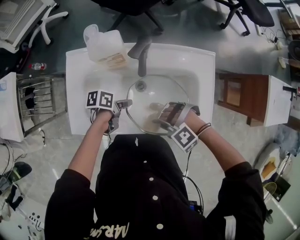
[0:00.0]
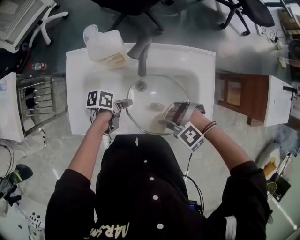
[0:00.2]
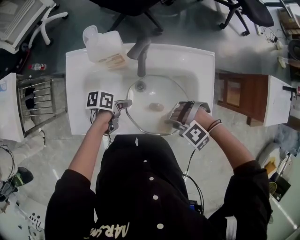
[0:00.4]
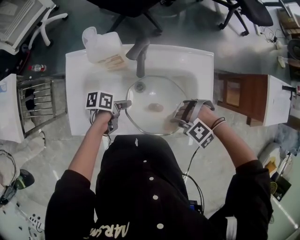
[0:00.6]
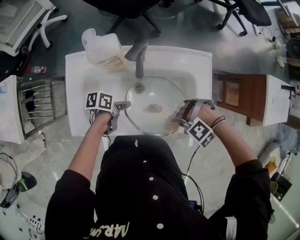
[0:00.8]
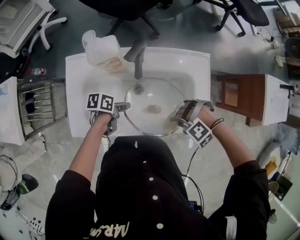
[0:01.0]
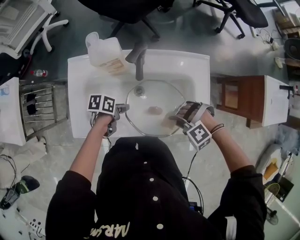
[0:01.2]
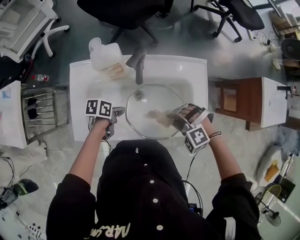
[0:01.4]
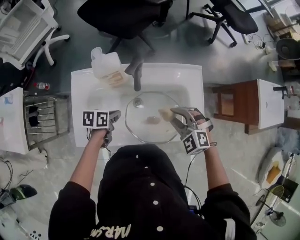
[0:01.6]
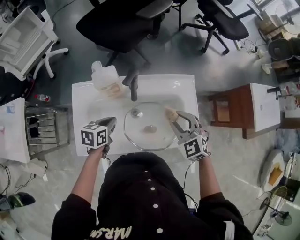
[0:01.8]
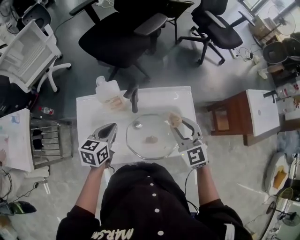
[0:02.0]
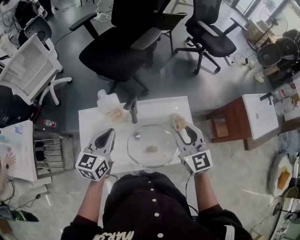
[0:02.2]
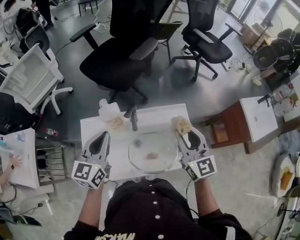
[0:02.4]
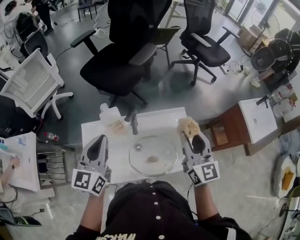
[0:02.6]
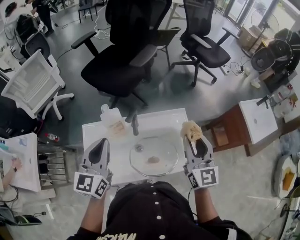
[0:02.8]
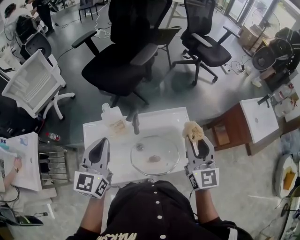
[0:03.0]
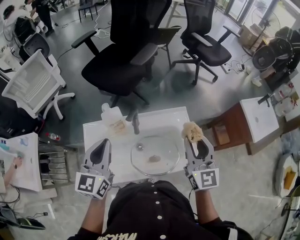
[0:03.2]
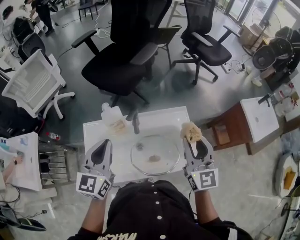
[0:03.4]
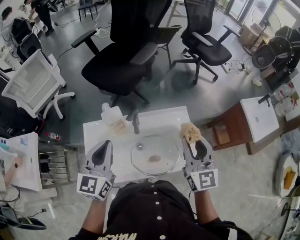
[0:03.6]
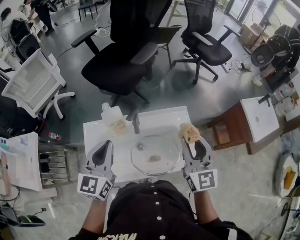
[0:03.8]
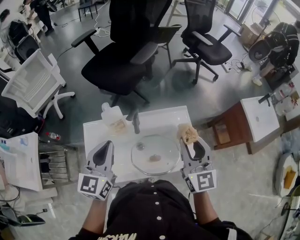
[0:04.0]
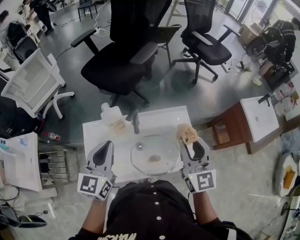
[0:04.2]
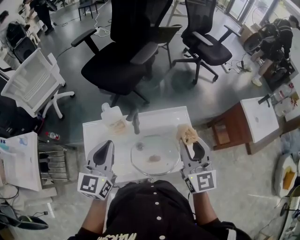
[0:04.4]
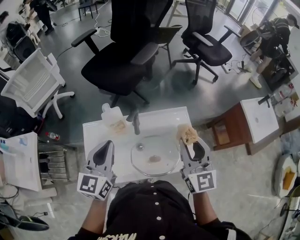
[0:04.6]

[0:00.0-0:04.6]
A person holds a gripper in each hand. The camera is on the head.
0.0 to 1.6 s: The left gripper ends up about 5 cm from where it was, and changes its angle by approximately 20 degrees. The right gripper ends up approximately 15 cm from where it was, and turns by some 50 degrees.
1.6 to 3.0 s: The grippers both shift upward by roughly 30 cm. The right gripper angles its fingers upward, by roughly 50 degrees. Meanwhile the left gripper angles its fingers upward, by about 40 degrees.
3.0 to 4.6 s: There are only small adjustments of the grippers.

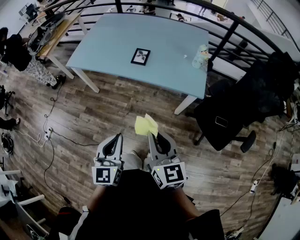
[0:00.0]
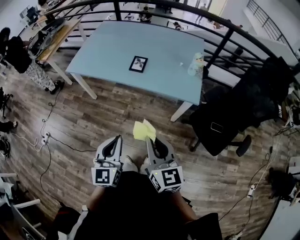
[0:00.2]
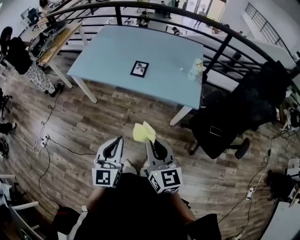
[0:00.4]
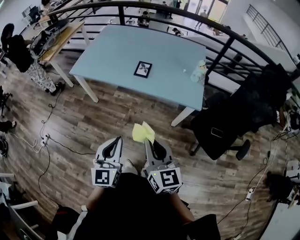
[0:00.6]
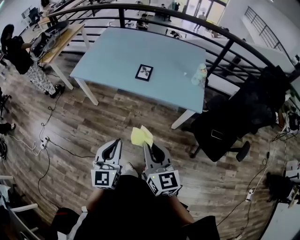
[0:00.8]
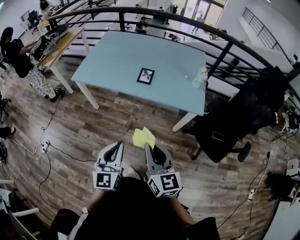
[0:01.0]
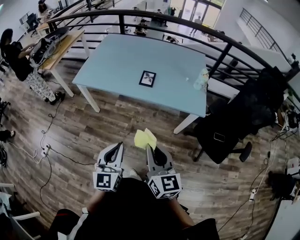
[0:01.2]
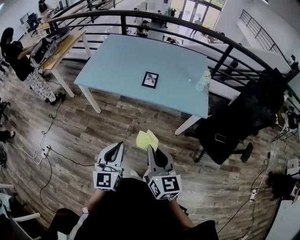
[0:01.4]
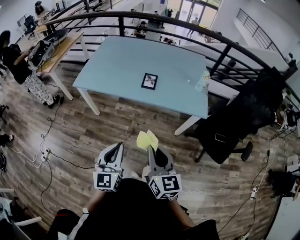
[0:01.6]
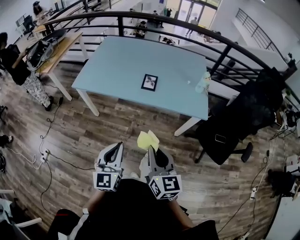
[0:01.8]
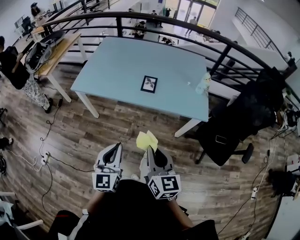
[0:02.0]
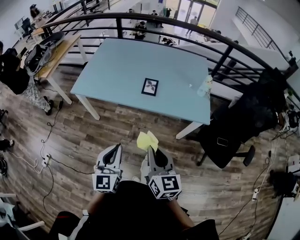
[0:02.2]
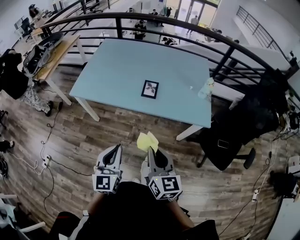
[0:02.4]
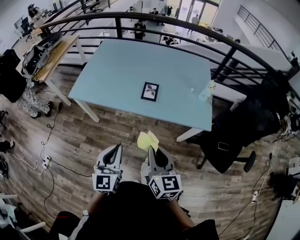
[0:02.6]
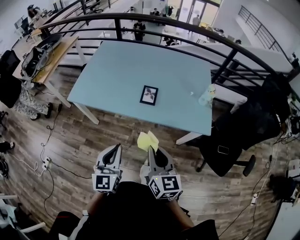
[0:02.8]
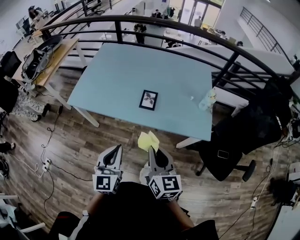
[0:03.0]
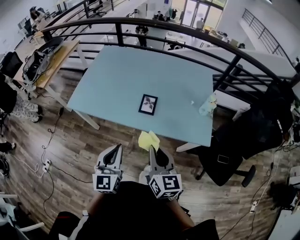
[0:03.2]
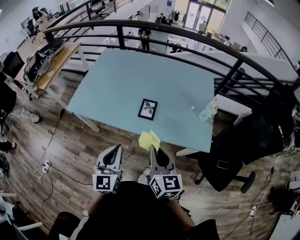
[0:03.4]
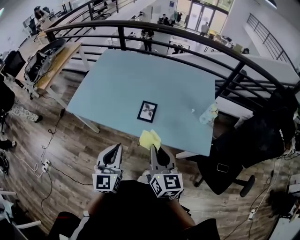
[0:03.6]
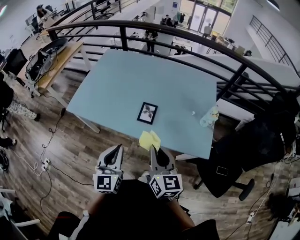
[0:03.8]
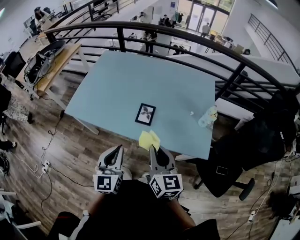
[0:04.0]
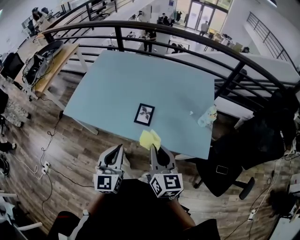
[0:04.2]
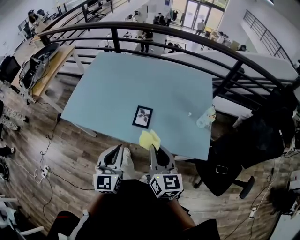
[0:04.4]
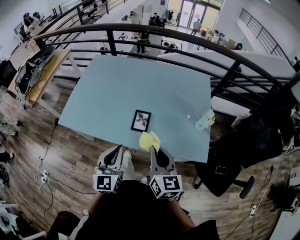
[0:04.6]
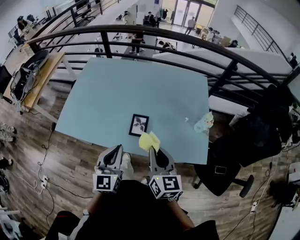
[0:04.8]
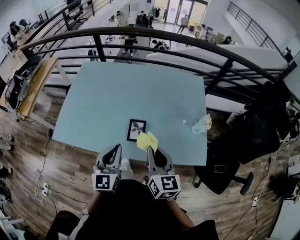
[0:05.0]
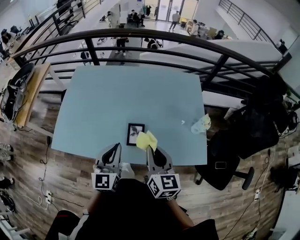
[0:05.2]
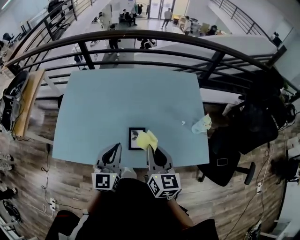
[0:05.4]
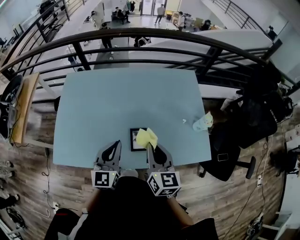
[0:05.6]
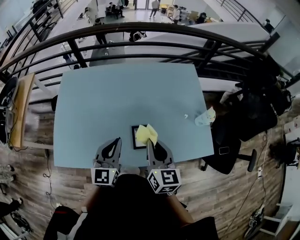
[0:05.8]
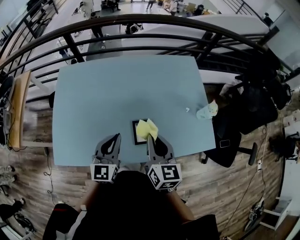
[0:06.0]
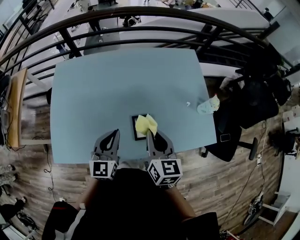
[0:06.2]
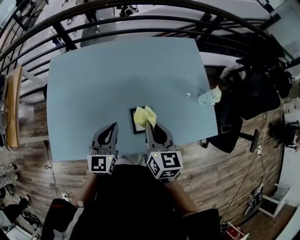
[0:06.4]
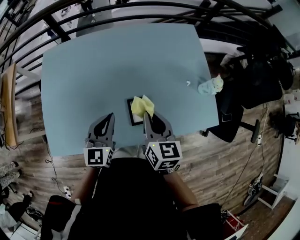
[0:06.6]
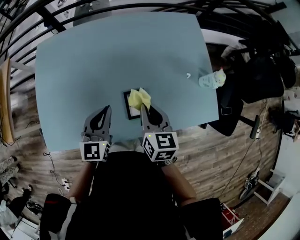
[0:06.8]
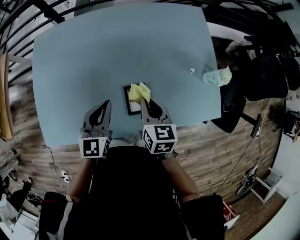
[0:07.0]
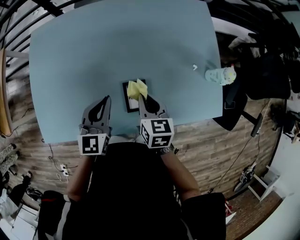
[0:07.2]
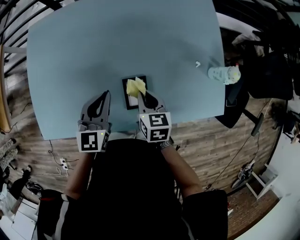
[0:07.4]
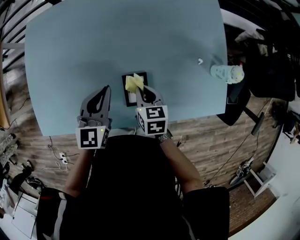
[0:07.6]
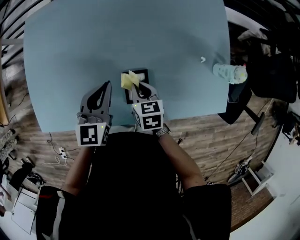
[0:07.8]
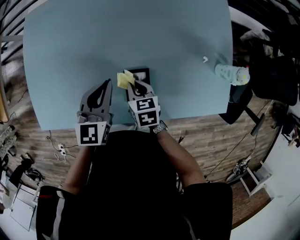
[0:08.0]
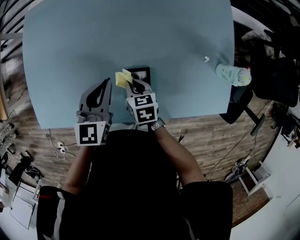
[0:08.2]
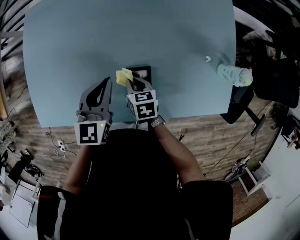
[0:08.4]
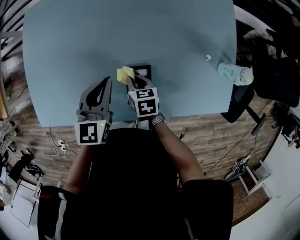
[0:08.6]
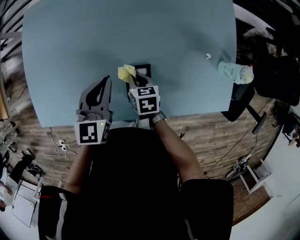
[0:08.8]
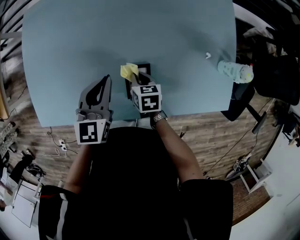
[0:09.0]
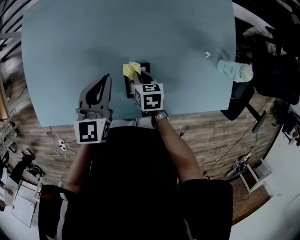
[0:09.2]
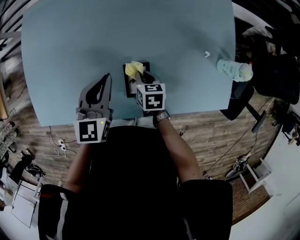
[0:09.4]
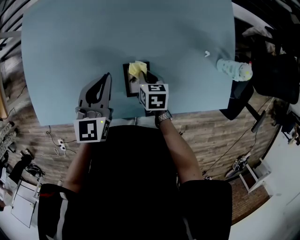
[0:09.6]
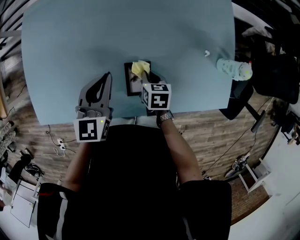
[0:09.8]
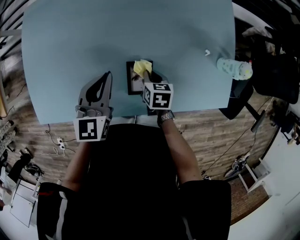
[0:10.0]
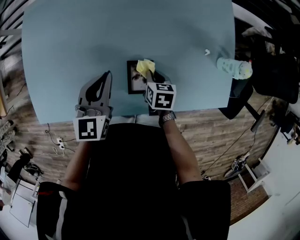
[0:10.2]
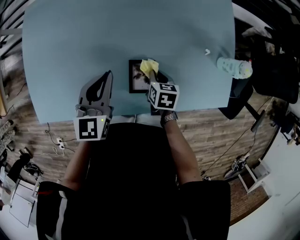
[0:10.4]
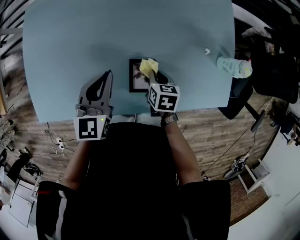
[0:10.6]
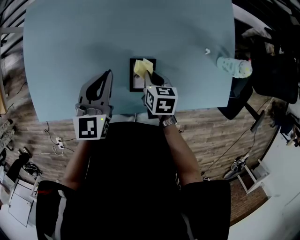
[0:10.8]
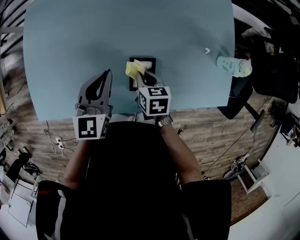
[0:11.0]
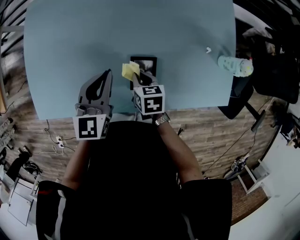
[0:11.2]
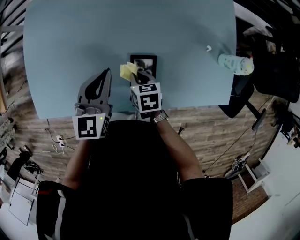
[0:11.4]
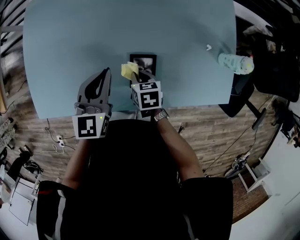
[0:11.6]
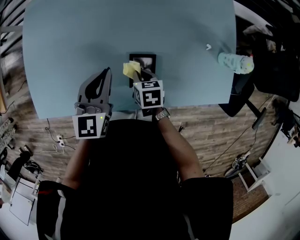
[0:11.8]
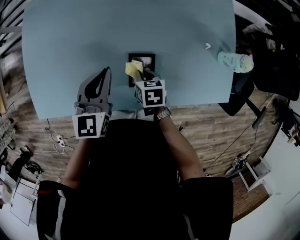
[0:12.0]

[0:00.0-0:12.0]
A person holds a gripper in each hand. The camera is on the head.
0.0 to 1.6 s: Both grippers travel together to the left, approximately 15 cm.
1.6 to 3.0 s: Both grippers move forward, about 20 cm.
3.0 to 4.4 s: Both grippers move forward and to the right, roughly 15 cm.
4.4 to 6.0 s: The two grippers go some 20 cm forward. The left gripper turns by roughly 20 degrees, while the right gripper turns by approximately 20 degrees.
6.0 to 7.6 s: The right gripper heads downward, covering roughly 25 cm, and points its fingers approximately 30 degrees further downward. Meanwhile the left gripper travels downward and forward by approximately 15 cm.
7.6 to 9.0 s: The right gripper is displaced downward by roughly 5 cm.
9.0 to 10.4 s: The right gripper moves to the right, approximately 10 cm.
10.4 to 12.0 s: The right gripper heads to the left, covering about 5 cm.

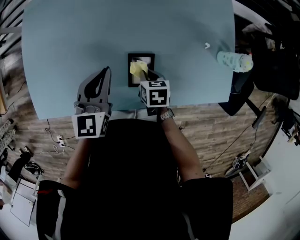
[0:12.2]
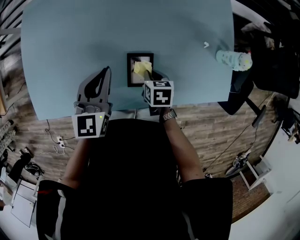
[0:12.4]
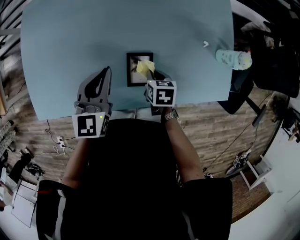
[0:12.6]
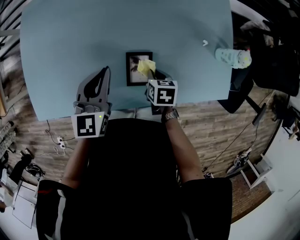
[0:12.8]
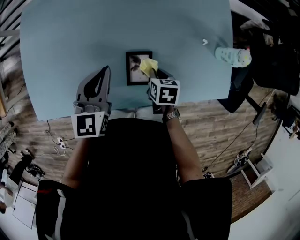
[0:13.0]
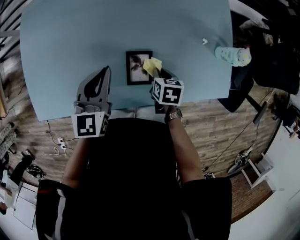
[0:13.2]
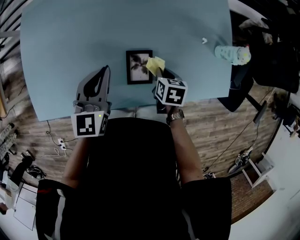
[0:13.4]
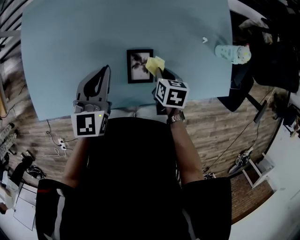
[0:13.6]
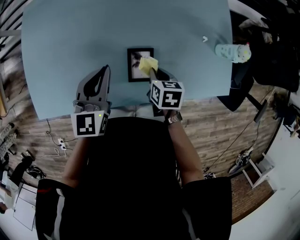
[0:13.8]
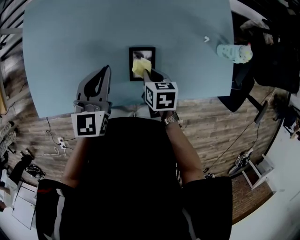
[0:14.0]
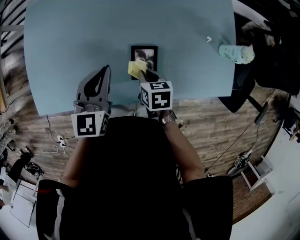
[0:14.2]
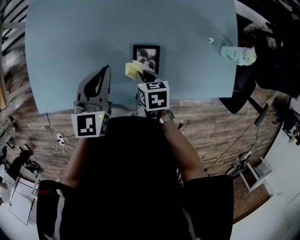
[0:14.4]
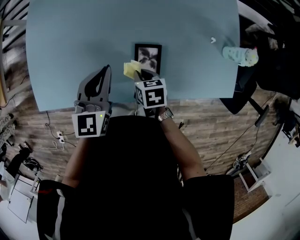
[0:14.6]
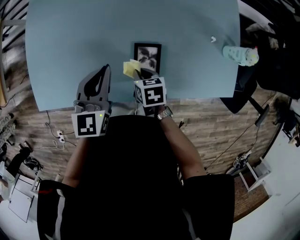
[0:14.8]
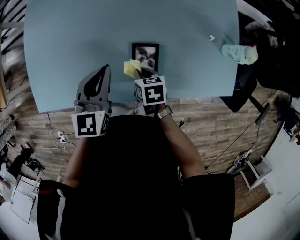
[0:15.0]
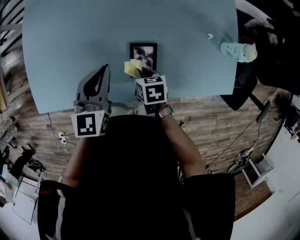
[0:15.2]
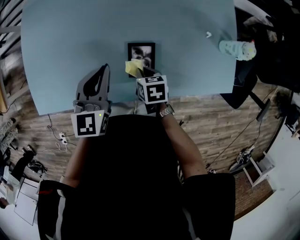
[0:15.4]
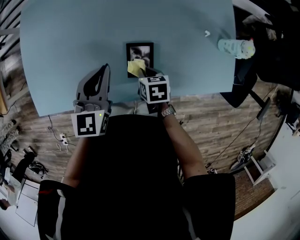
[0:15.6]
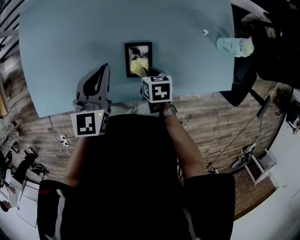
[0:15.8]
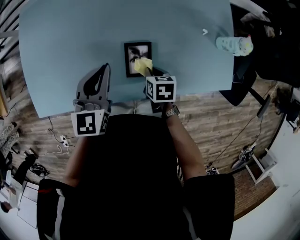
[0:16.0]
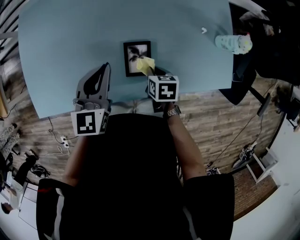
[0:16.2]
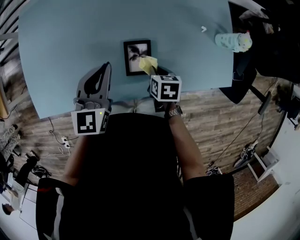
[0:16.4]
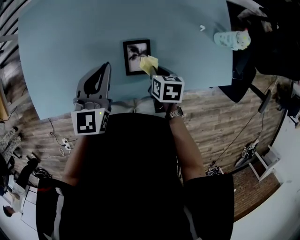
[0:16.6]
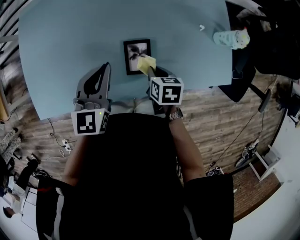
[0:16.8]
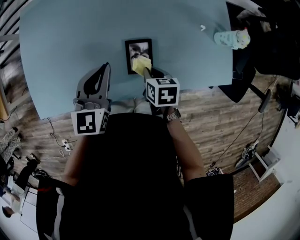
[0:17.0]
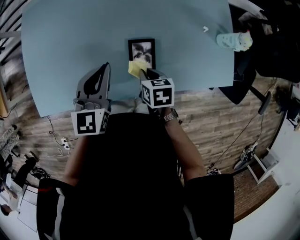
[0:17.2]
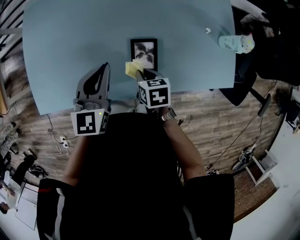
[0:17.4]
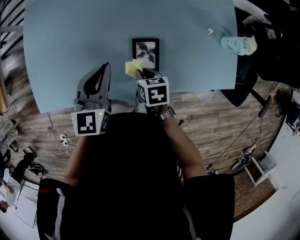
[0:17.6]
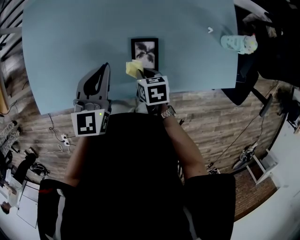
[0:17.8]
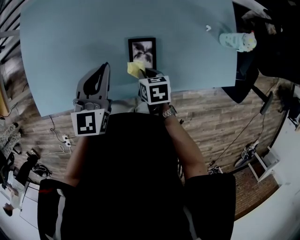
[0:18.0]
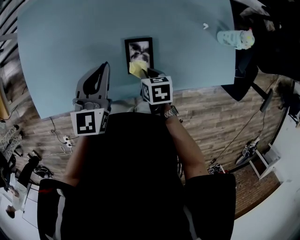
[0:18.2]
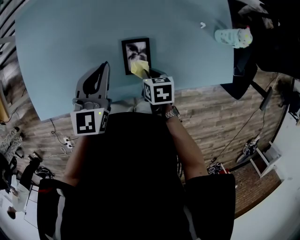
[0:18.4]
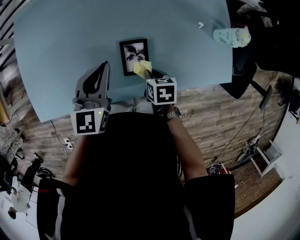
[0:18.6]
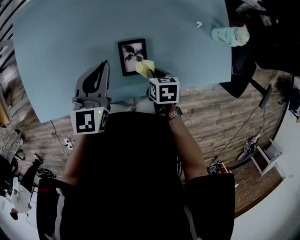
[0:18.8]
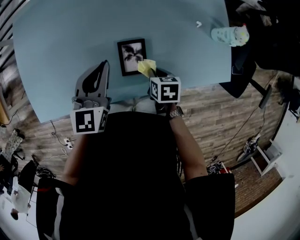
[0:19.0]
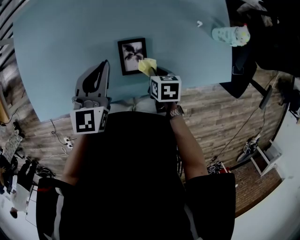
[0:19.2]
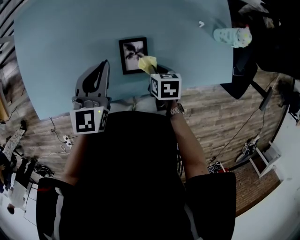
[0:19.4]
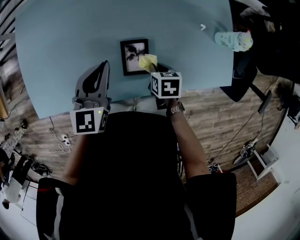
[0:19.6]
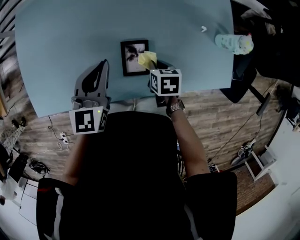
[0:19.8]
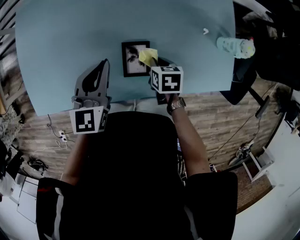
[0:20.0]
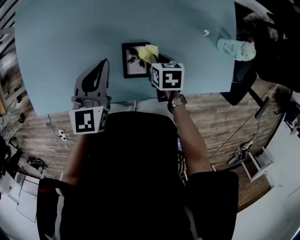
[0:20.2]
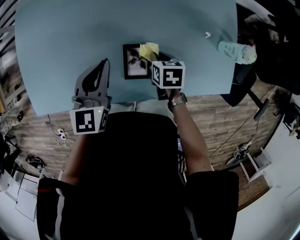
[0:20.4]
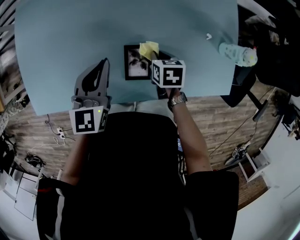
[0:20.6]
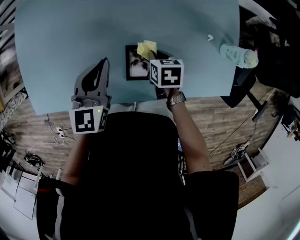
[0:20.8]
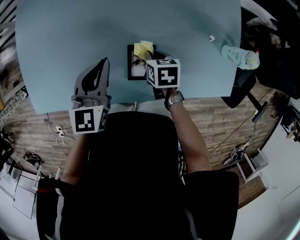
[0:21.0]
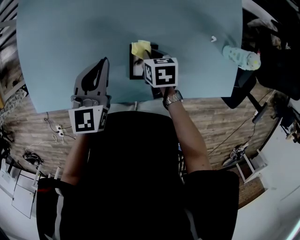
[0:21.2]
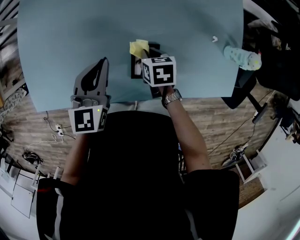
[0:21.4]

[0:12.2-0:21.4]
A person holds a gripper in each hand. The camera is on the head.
12.2 to 13.8 s: The right gripper moves some 5 cm.
13.8 to 15.2 s: The right gripper is displaced to the left by some 5 cm.
15.2 to 16.8 s: The right gripper goes about 5 cm to the right.
16.8 to 18.4 s: The right gripper reaches approximately 10 cm to the left, then returns.
18.4 to 19.8 s: The right gripper moves some 5 cm.
19.8 to 21.4 s: The right gripper moves forward and to the left, about 10 cm.
